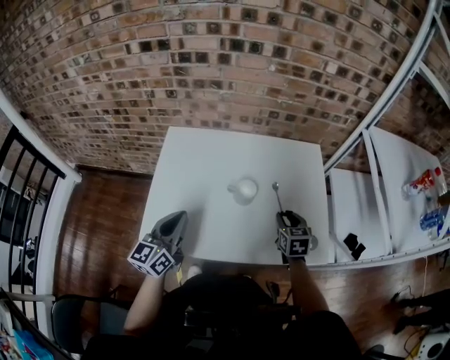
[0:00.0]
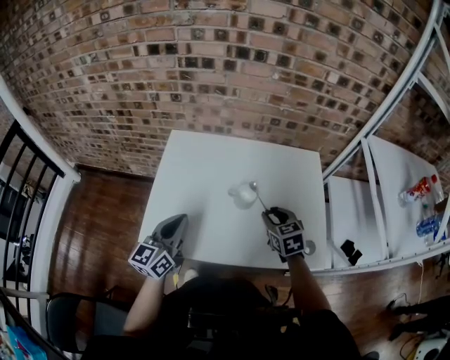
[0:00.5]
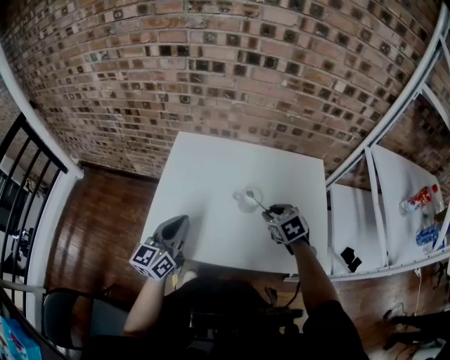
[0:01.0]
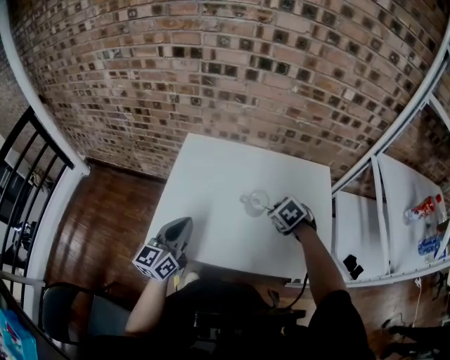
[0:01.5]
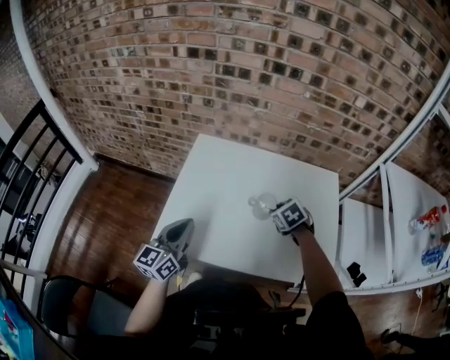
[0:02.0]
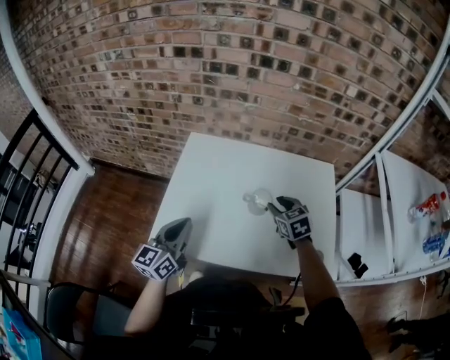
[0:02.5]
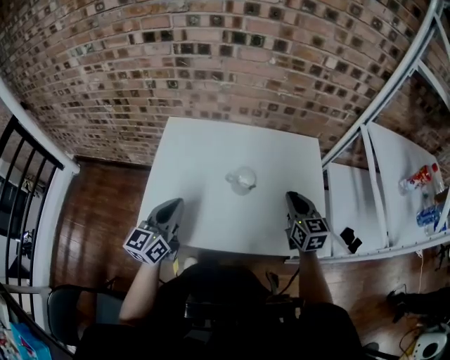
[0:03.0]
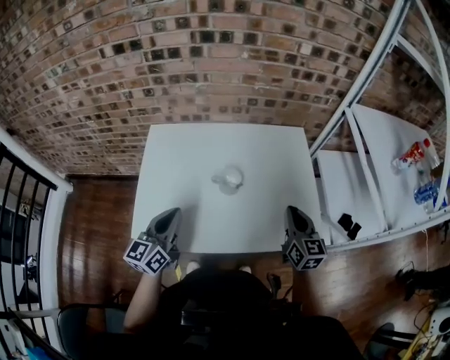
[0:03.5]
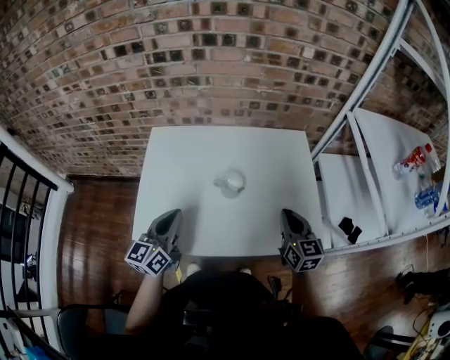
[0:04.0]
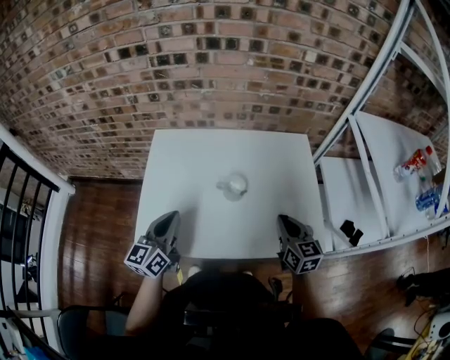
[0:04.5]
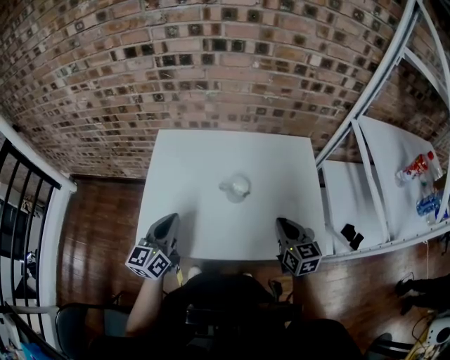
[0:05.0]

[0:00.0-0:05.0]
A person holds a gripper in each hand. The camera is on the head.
0:00.0 to 0:02.5: The right gripper is displaced to the left and forward by roughly 10 cm, and turns by about 30 degrees.
0:02.5 to 0:05.0: The right gripper goes some 15 cm backward and to the right, swivels approximately 30 degrees, and closes.

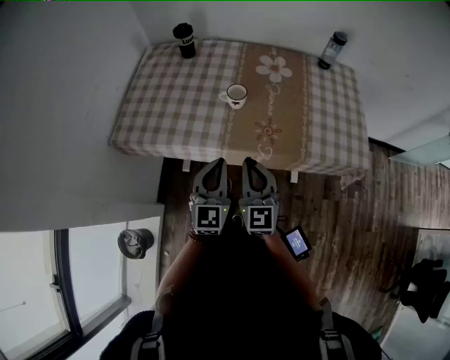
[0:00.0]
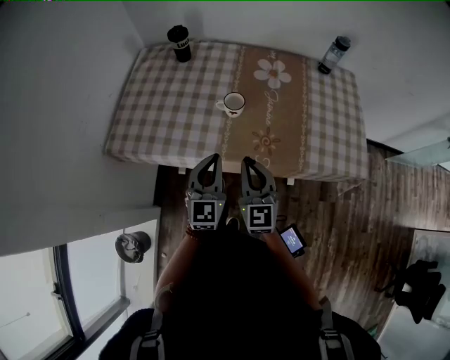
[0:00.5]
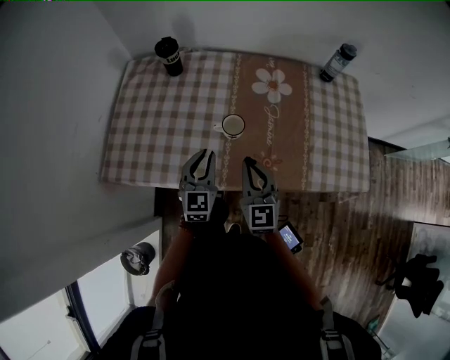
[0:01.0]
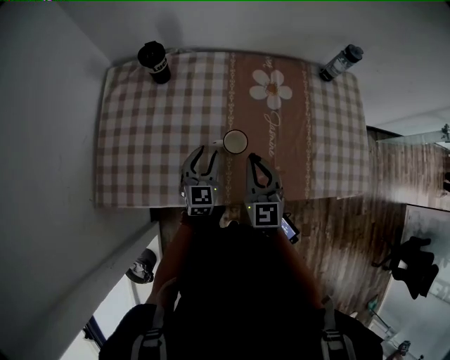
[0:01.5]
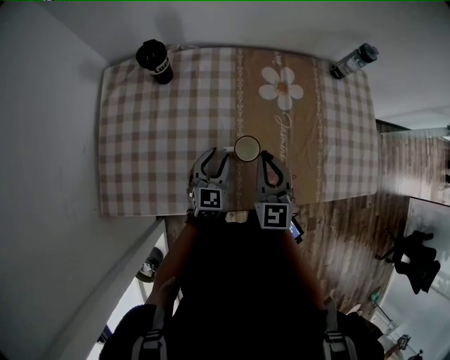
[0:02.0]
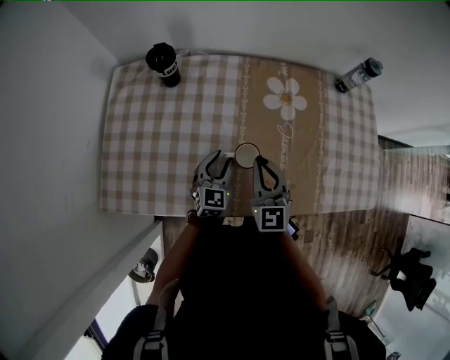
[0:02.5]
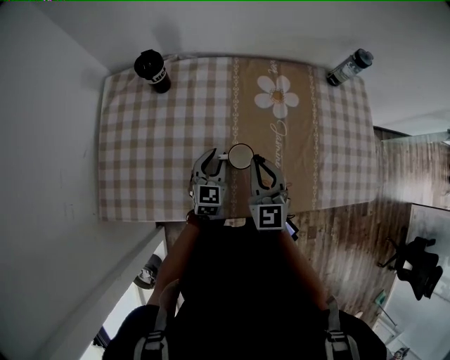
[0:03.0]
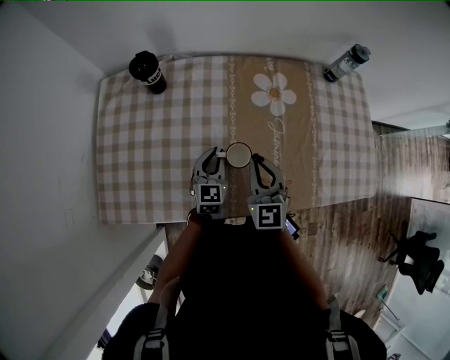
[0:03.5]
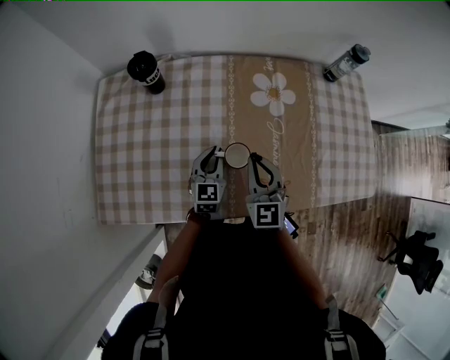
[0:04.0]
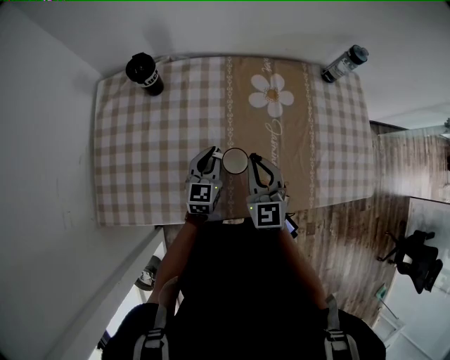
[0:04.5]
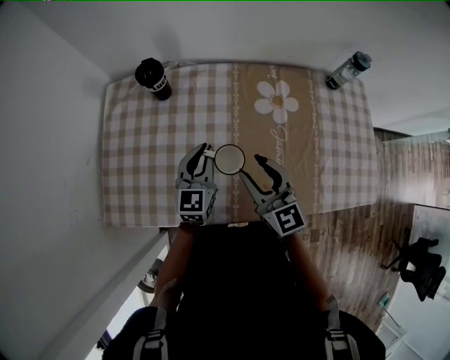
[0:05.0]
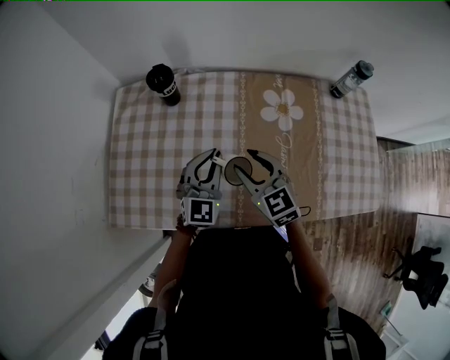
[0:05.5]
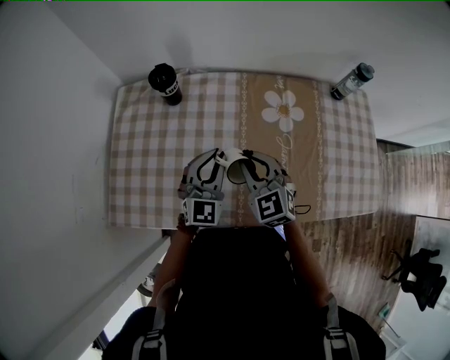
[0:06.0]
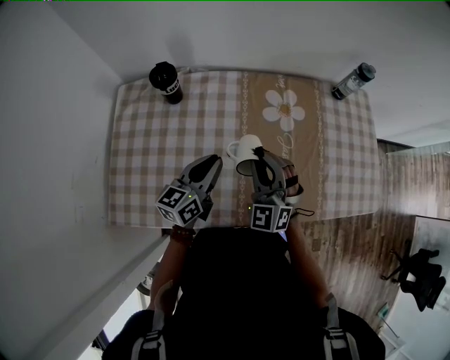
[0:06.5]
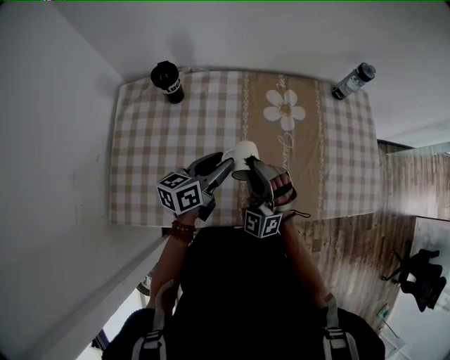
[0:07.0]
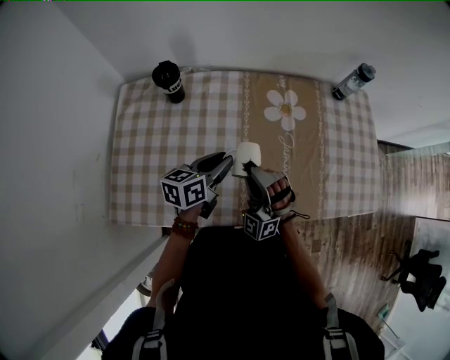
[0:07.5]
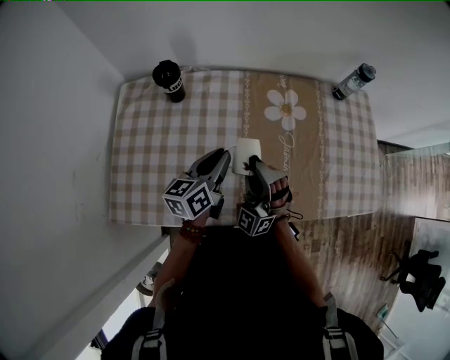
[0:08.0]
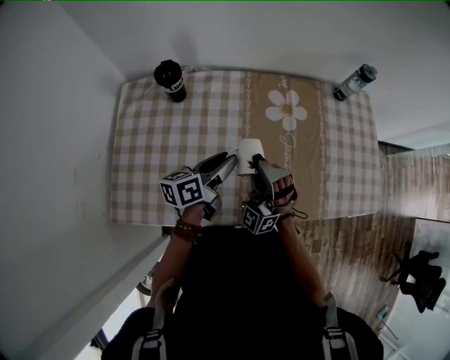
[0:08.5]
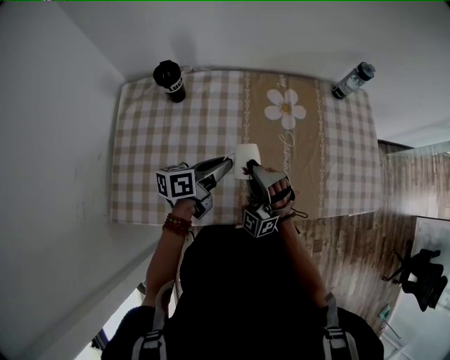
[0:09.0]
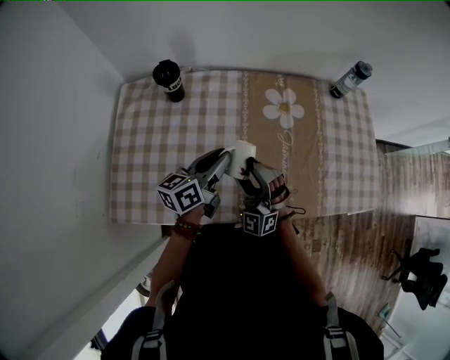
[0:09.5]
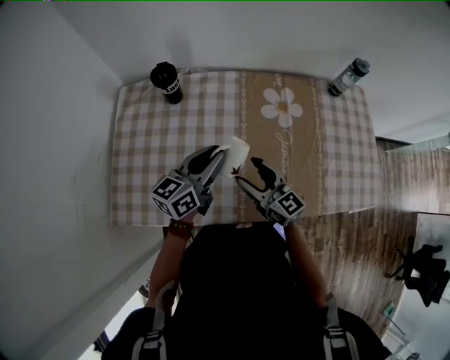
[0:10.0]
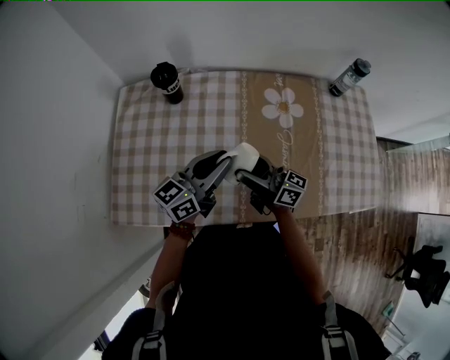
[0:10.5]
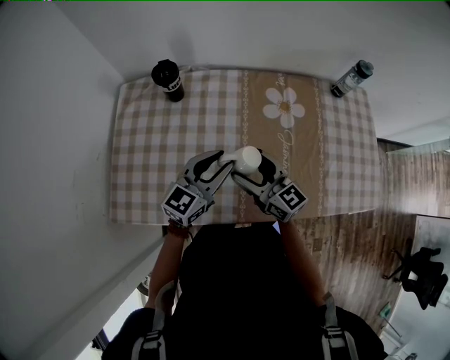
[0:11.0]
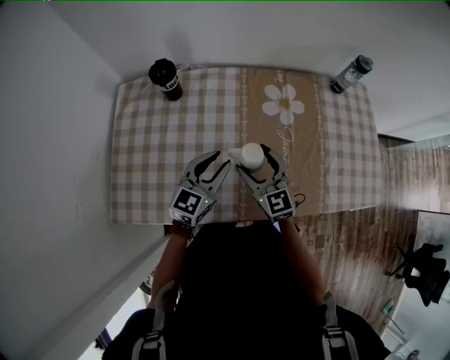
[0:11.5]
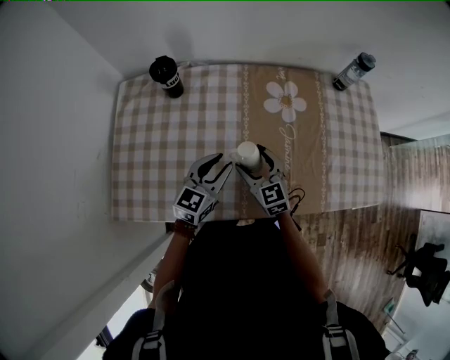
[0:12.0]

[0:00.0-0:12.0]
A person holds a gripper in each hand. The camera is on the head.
0:00.0 to 0:02.0: The right gripper travels forward by some 30 cm. Meanwhile the left gripper shifts roughly 35 cm forward and downward, rotates roughly 20 degrees, and opens its fingers.
0:02.0 to 0:04.0: The left gripper closes its fingers.
0:04.0 to 0:06.0: The right gripper goes roughly 5 cm to the left, rotates roughly 20 degrees, and opens, then closes again. The left gripper goes approximately 15 cm upward, and turns by some 20 degrees.
0:06.0 to 0:08.0: The left gripper twists some 50 degrees counterclockwise, seen from behind, and opens, then closes again, while the right gripper rotates about 50 degrees.
0:08.0 to 0:10.0: The right gripper travels downward by some 5 cm, rolls clockwise, seen from behind, by approximately 80 degrees, and opens; the left gripper opens and closes again.
0:10.0 to 0:12.0: The grippers both shift downward by roughly 5 cm. The right gripper turns by some 30 degrees. The left gripper rotates roughly 30 degrees.

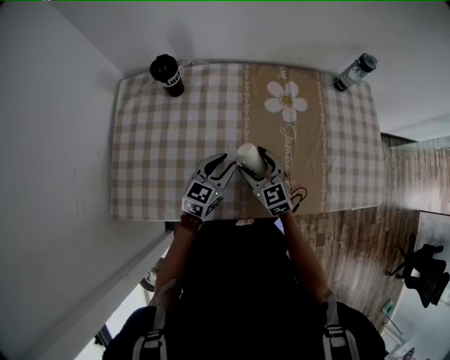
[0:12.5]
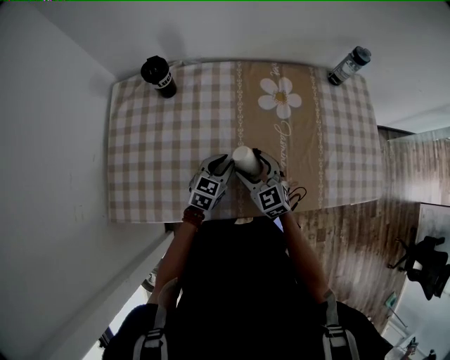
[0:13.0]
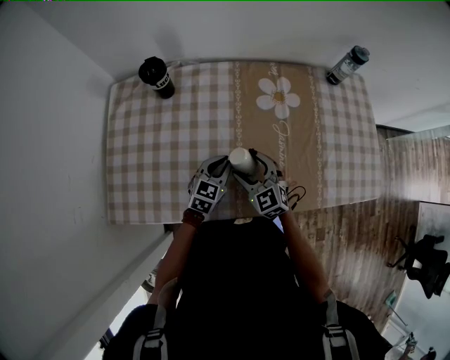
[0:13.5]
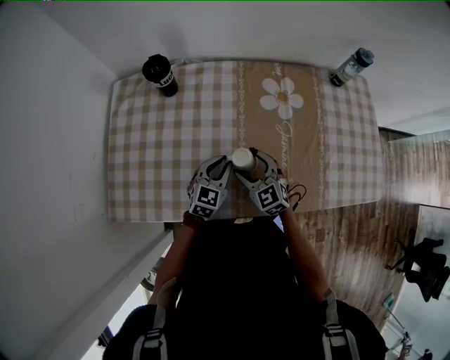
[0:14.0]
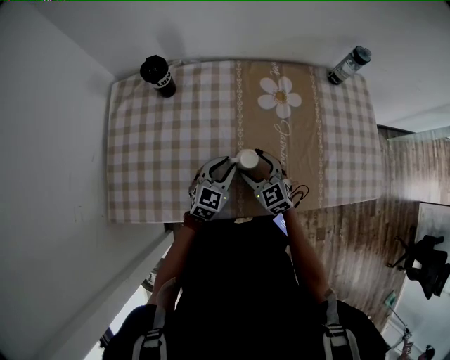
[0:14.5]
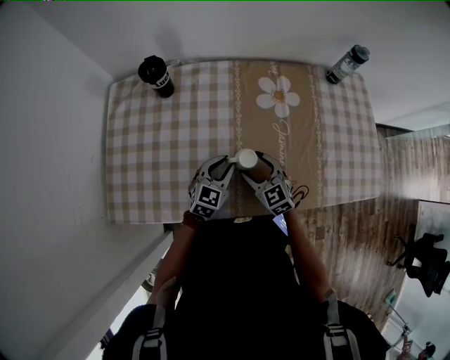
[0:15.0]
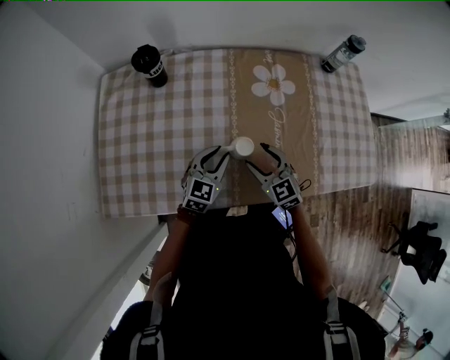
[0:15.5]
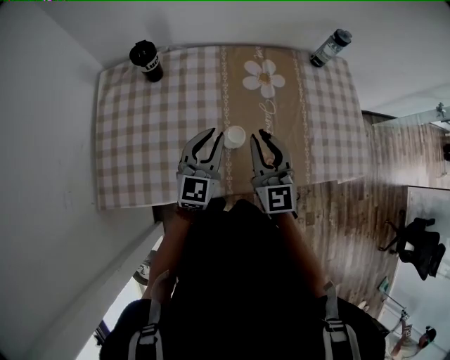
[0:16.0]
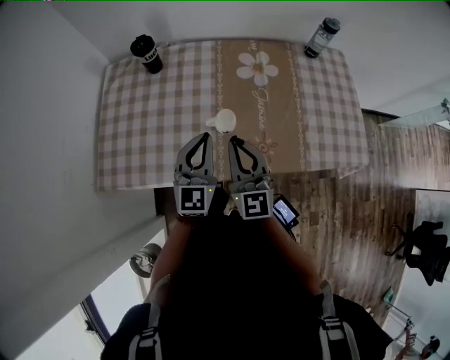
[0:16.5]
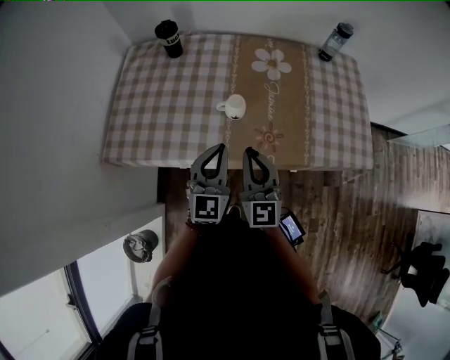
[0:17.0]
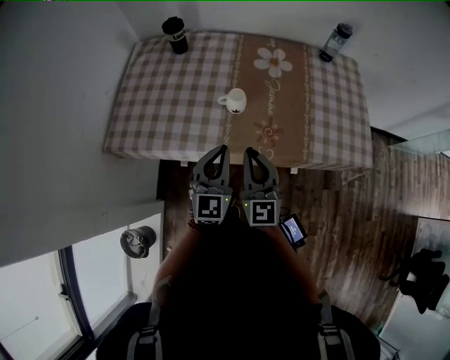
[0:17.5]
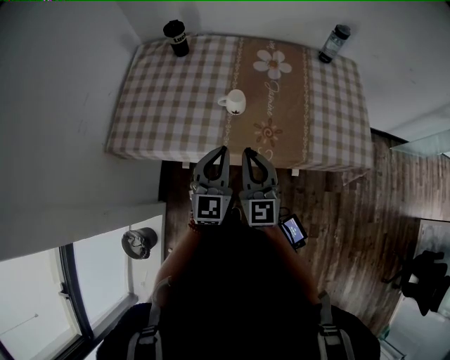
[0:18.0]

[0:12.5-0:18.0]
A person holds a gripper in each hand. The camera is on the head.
0:14.5 to 0:16.0: Both grippers travel together upward, roughly 15 cm. The left gripper swivels approximately 20 degrees, while the right gripper angles its fingers upward, by about 30 degrees, and closes its fingers.
0:16.0 to 0:18.0: The two grippers go approximately 20 cm backward.

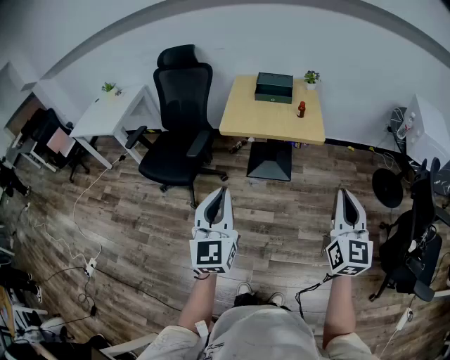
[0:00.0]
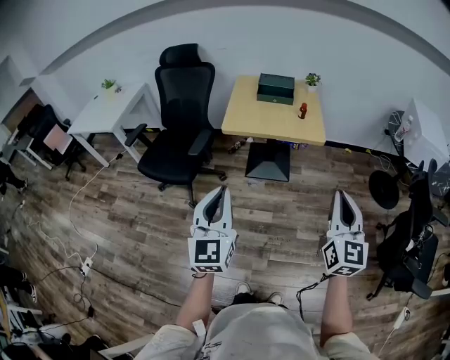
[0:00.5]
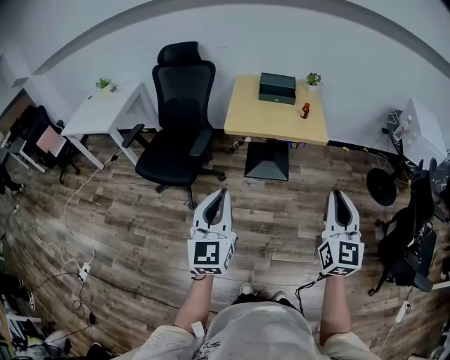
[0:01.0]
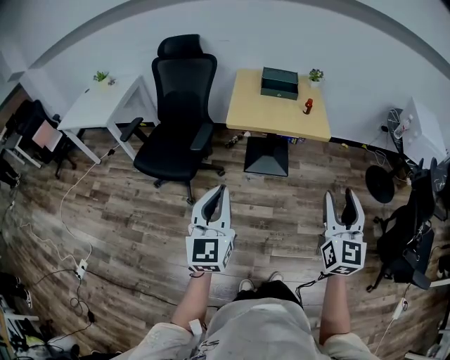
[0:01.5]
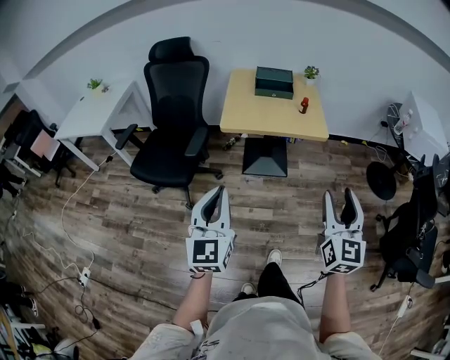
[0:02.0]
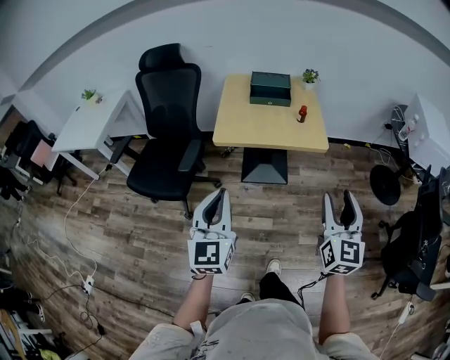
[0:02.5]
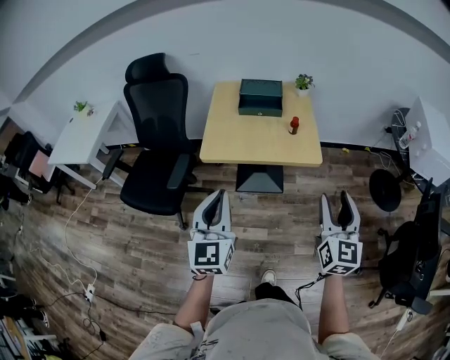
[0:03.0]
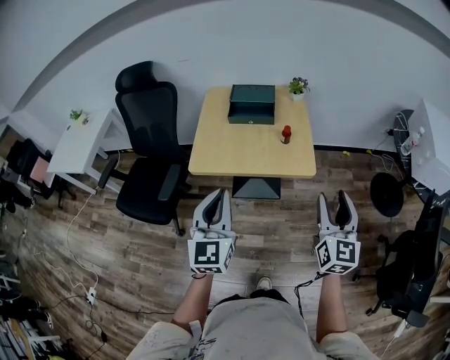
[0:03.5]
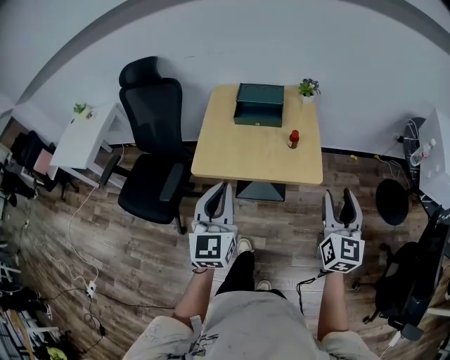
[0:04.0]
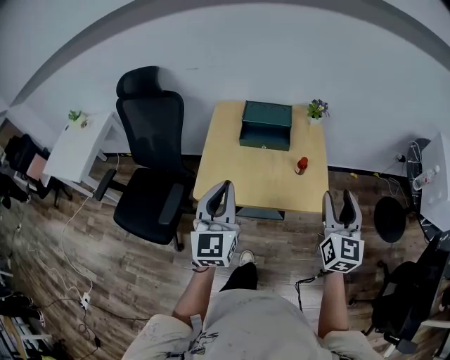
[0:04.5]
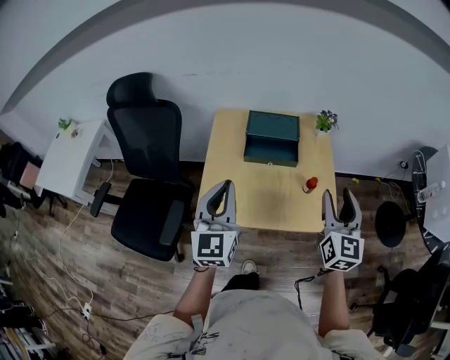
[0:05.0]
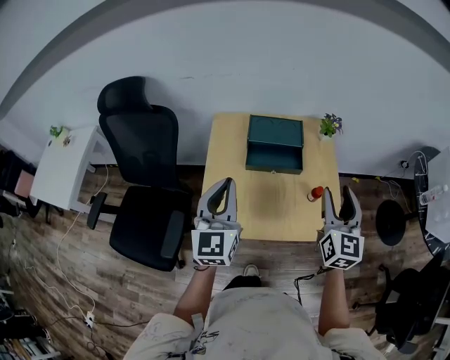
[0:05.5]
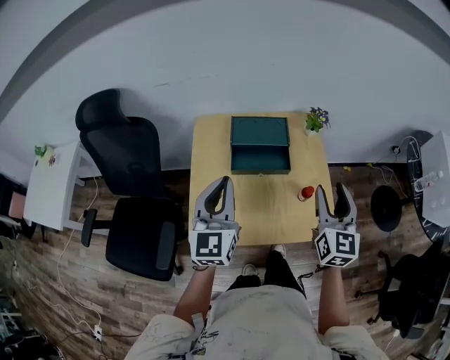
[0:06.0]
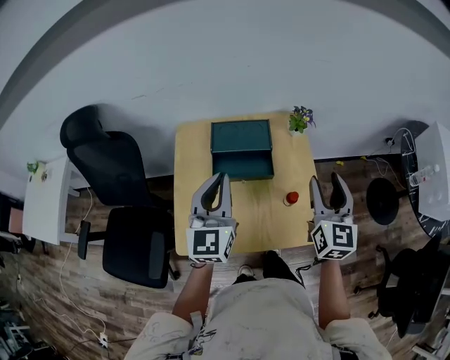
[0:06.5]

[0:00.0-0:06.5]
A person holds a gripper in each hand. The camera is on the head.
0:00.0 to 0:02.0: Both grippers travel together to the left, roughly 10 cm. The right gripper opens its fingers.
0:02.0 to 0:04.5: Both grippers are carried forward, some 50 cm.
0:04.5 to 0:06.5: The grippers both shift forward by approximately 25 cm.
